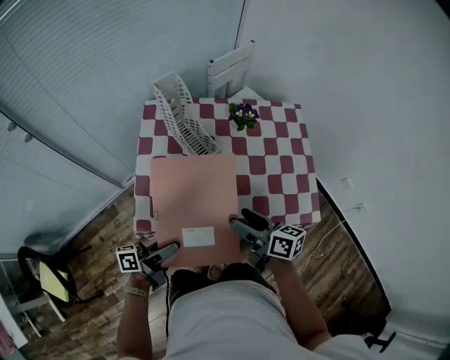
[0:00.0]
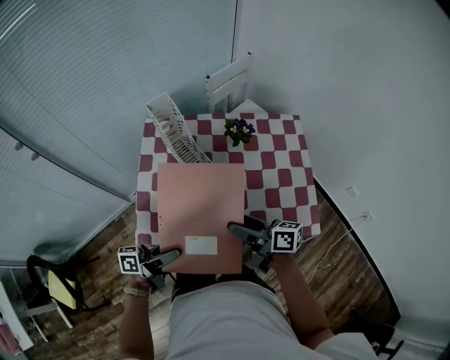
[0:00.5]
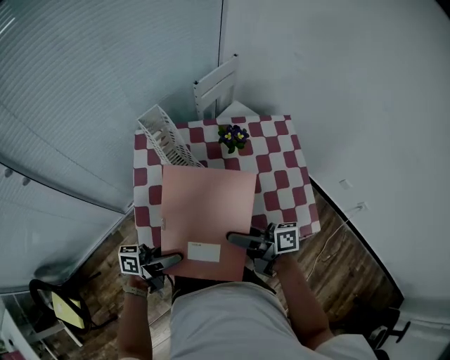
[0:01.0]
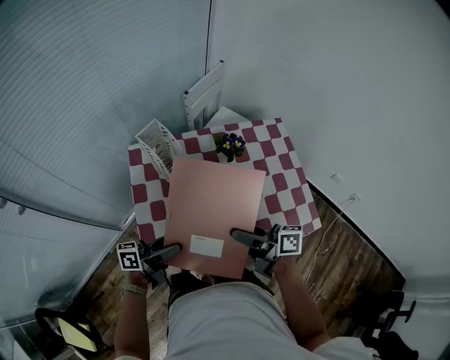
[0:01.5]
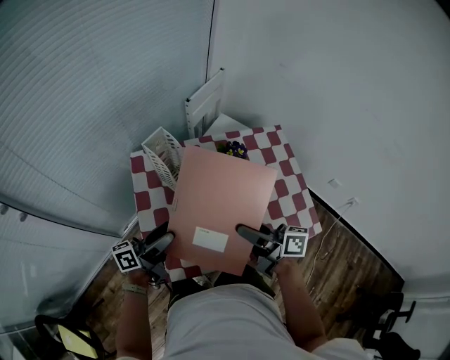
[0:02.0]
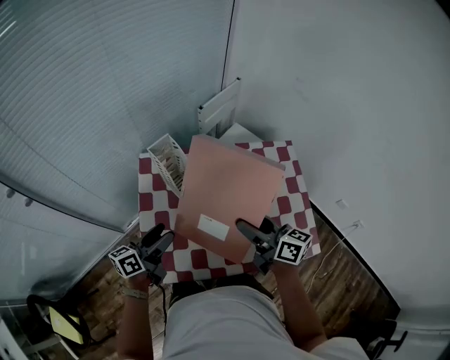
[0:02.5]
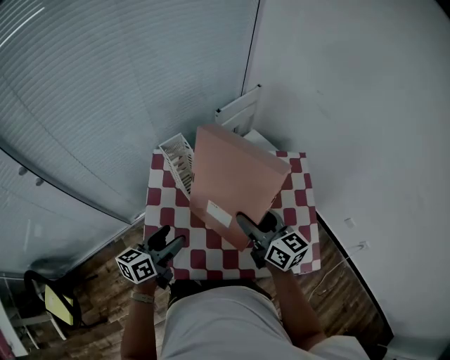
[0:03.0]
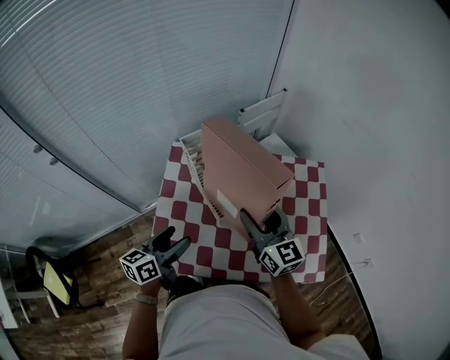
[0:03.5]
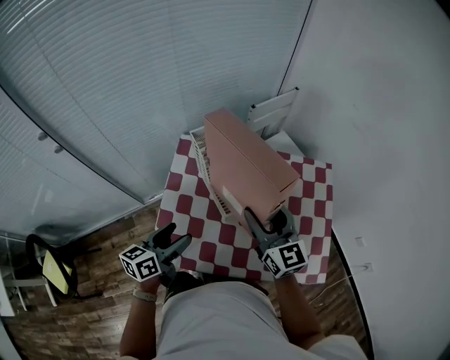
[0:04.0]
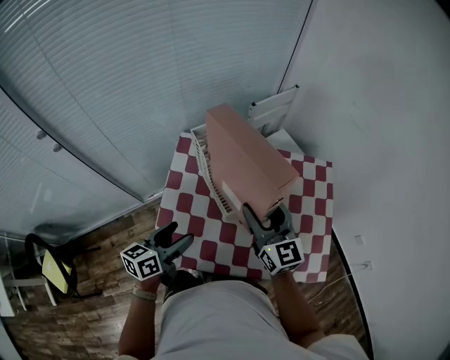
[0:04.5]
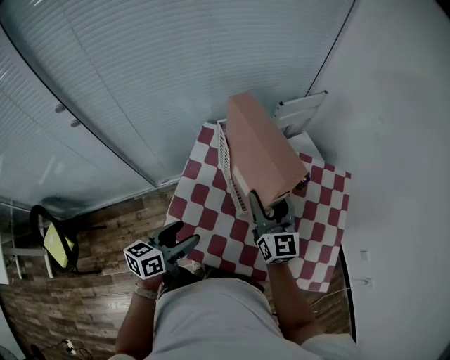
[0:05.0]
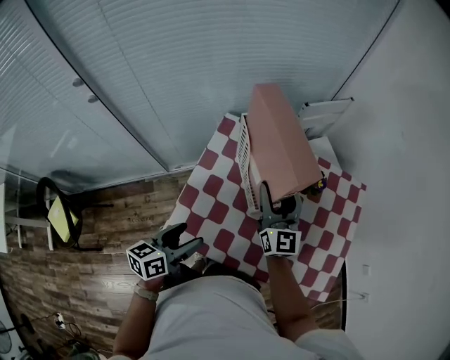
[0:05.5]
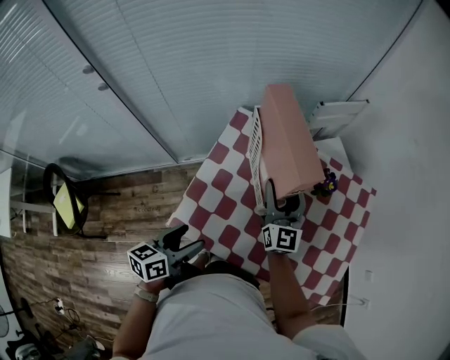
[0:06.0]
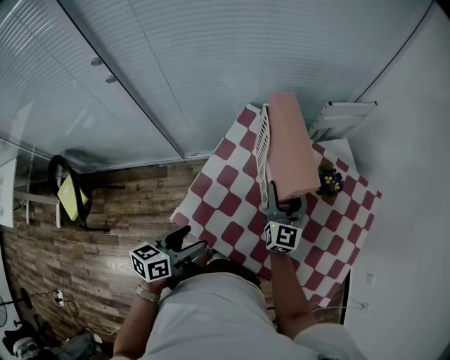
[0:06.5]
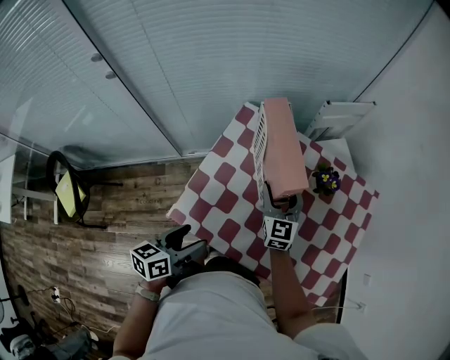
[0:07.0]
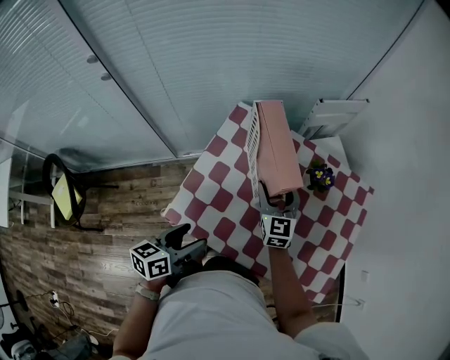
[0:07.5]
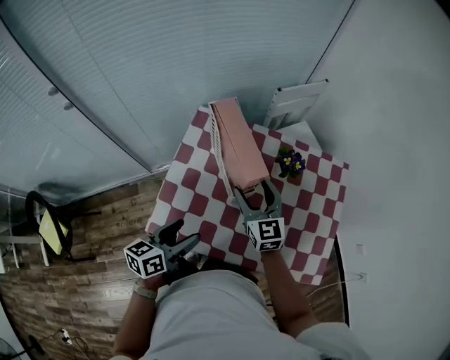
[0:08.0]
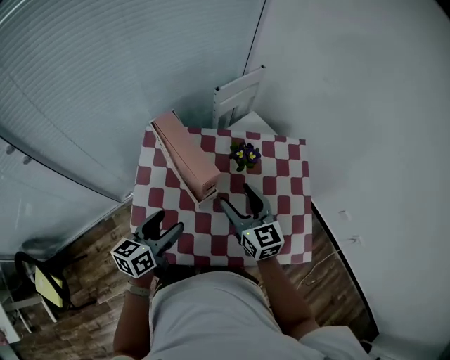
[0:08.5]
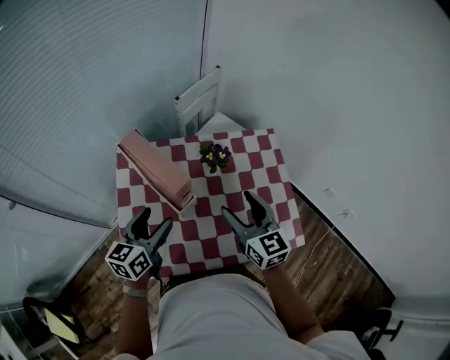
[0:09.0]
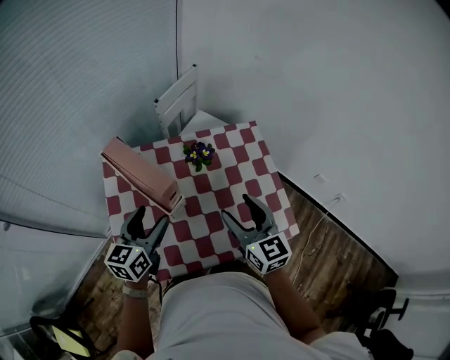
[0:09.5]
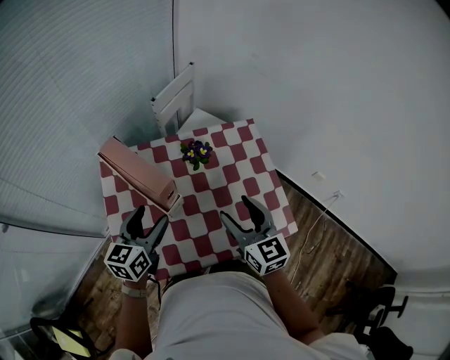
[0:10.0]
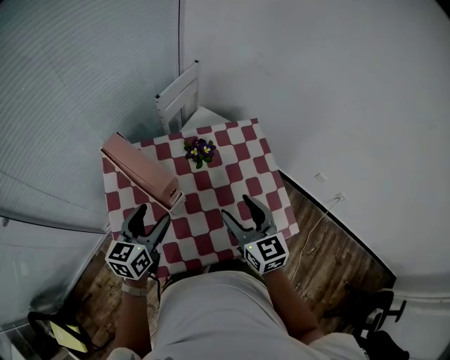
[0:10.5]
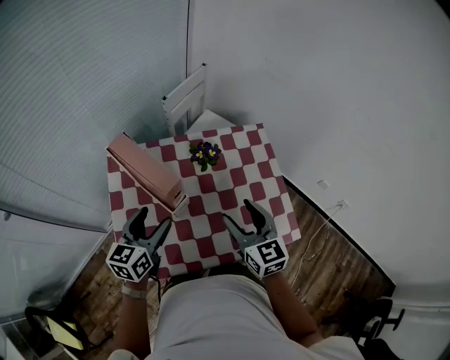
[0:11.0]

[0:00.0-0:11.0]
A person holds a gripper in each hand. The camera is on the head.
0:00.0 to 0:02.0: The left gripper shifts by approximately 25 cm; the right gripper changes place by some 15 cm.
0:02.0 to 0:03.5: The right gripper travels forward by approximately 10 cm, and rolls counterclockwise, seen from behind, by some 50 degrees. Meanwhile the left gripper rotates some 40 degrees.
0:03.5 to 0:05.5: The right gripper moves to the left and forward, about 10 cm, while the left gripper is displaced backward by some 5 cm.
0:05.5 to 0:07.5: The right gripper travels downward by some 10 cm, and rotates approximately 20 degrees. The left gripper ends up some 5 cm from where it was.
0:07.5 to 0:09.0: The left gripper travels forward by about 15 cm, and changes its angle by roughly 30 degrees; the right gripper heads to the right, upward and backward, covering some 20 cm, and turns by roughly 20 degrees.
0:09.0 to 0:11.0: The grippers make only small movements.

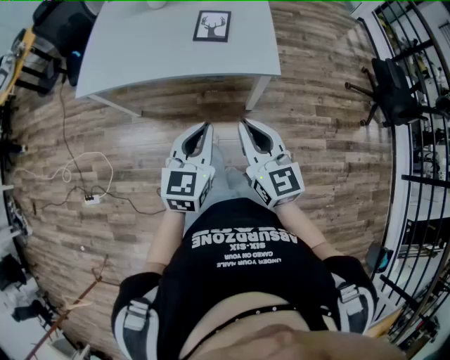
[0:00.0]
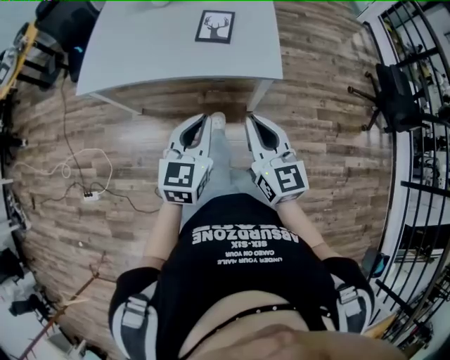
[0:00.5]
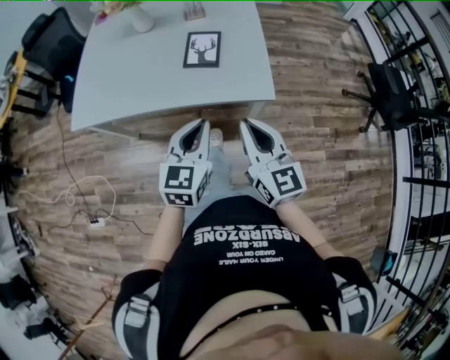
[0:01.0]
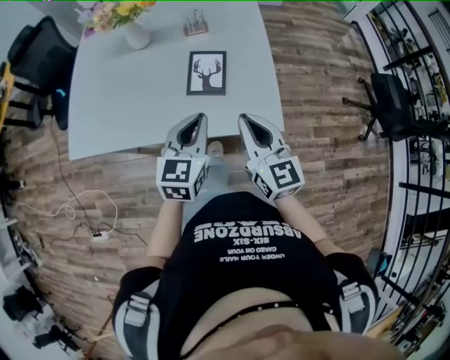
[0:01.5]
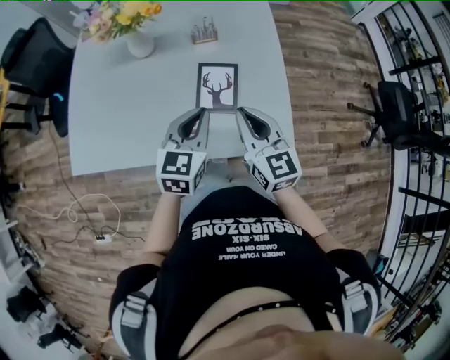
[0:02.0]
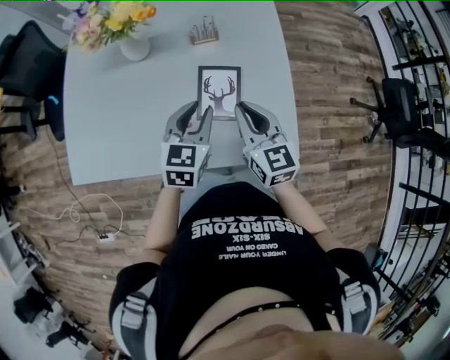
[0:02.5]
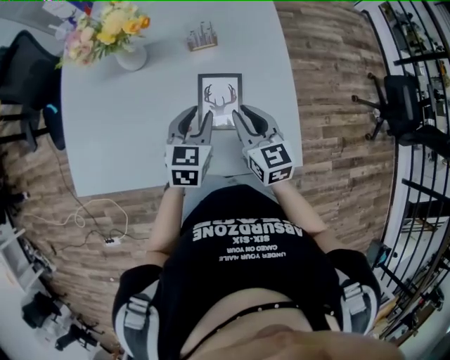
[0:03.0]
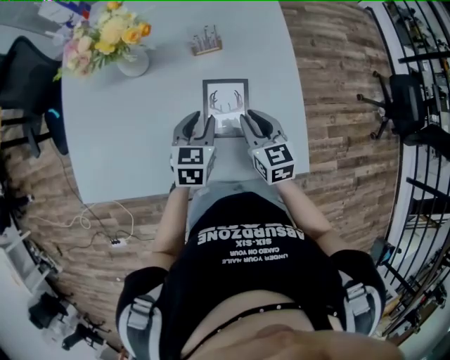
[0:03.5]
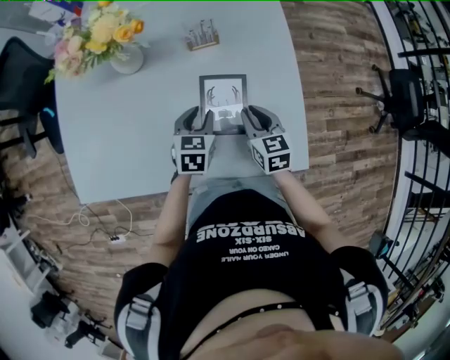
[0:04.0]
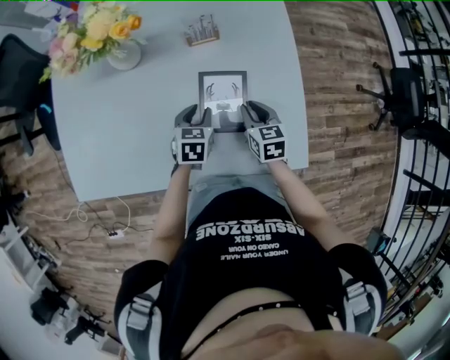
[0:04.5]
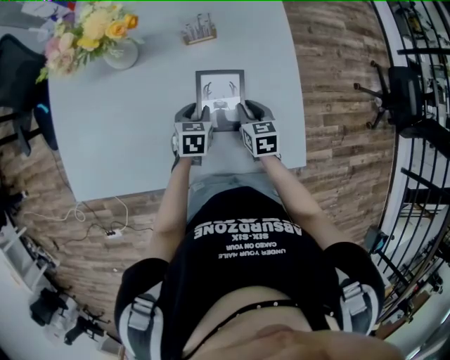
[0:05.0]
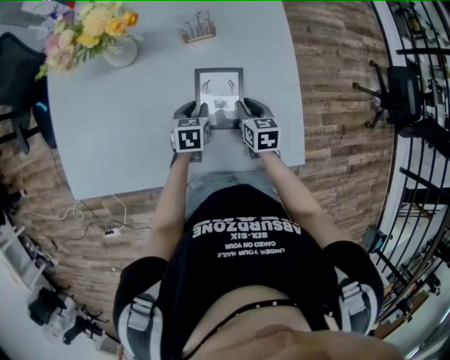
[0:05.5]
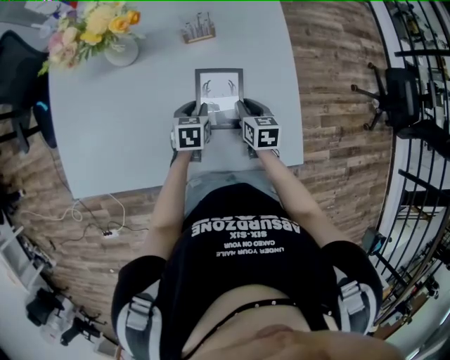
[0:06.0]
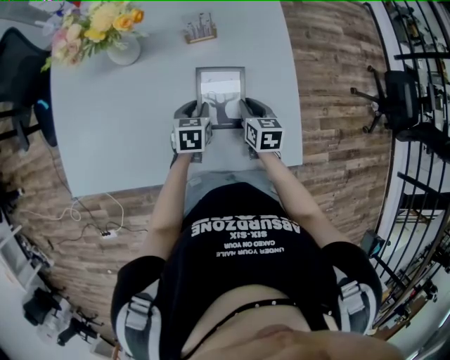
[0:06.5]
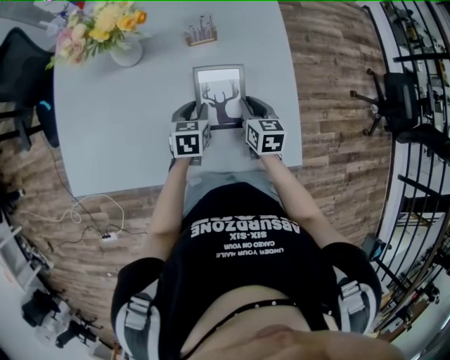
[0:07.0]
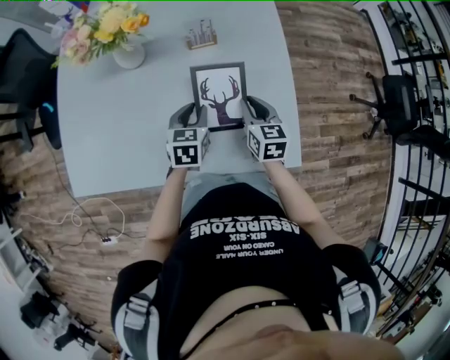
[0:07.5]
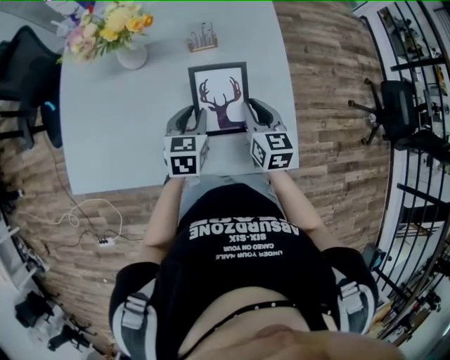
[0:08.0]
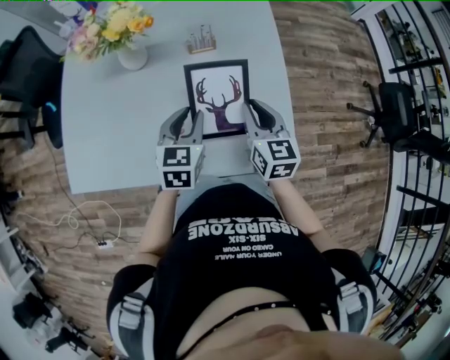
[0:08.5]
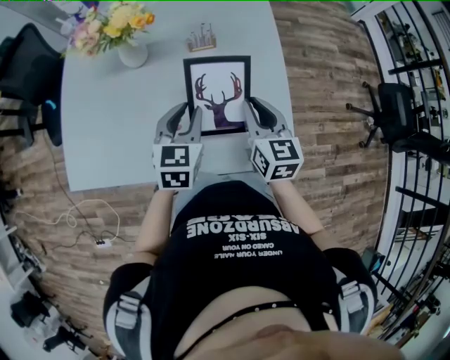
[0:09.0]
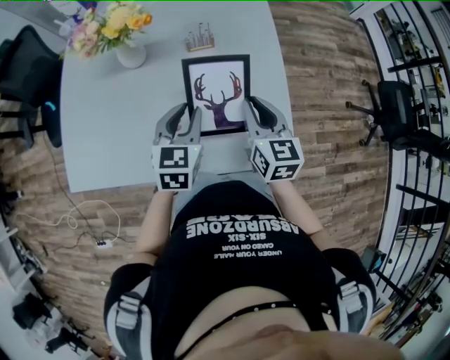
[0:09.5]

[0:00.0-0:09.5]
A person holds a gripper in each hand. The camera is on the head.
0:00.0 to 0:02.0: The grippers both shift forward by roughly 40 cm.
0:02.0 to 0:04.0: Both grippers move downward and forward, approximately 20 cm. The right gripper swivels approximately 20 degrees, while the left gripper changes its angle by about 20 degrees, and opens up.
0:04.0 to 0:05.5: Both grippers travel together downward, about 10 cm.
0:05.5 to 0:07.5: Both grippers travel together upward, roughly 10 cm.
0:07.5 to 0:09.5: Both grippers move upward, approximately 10 cm.

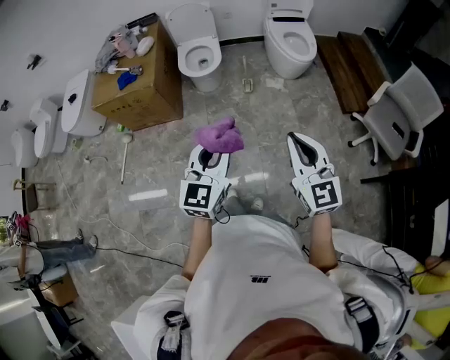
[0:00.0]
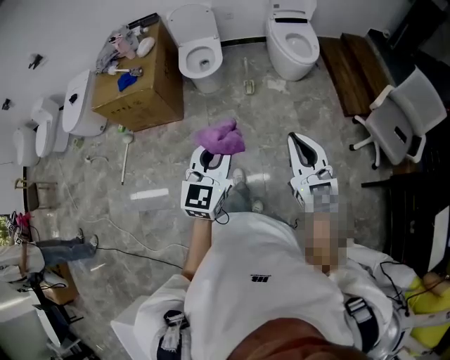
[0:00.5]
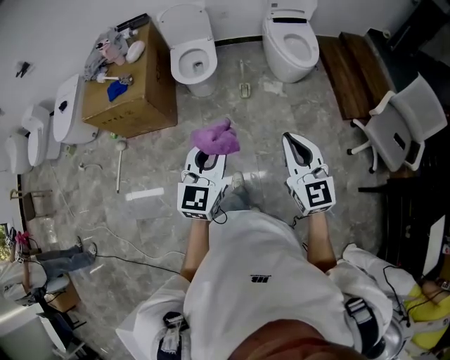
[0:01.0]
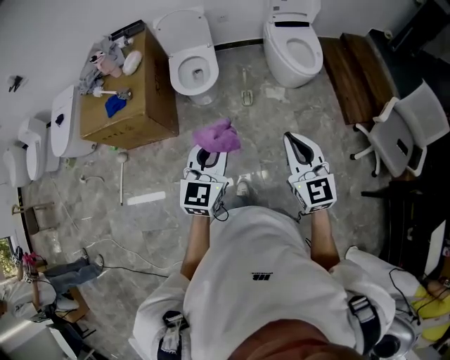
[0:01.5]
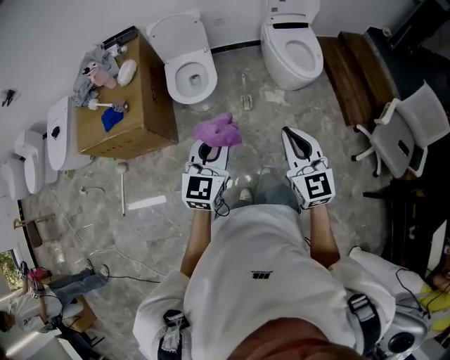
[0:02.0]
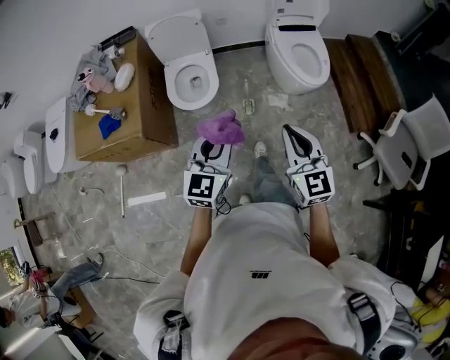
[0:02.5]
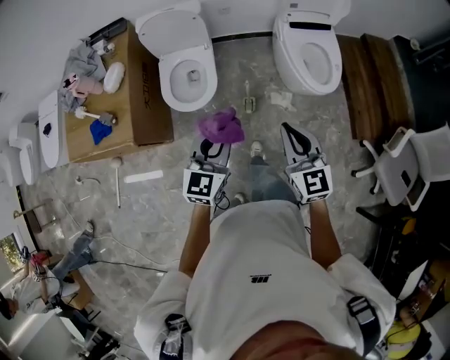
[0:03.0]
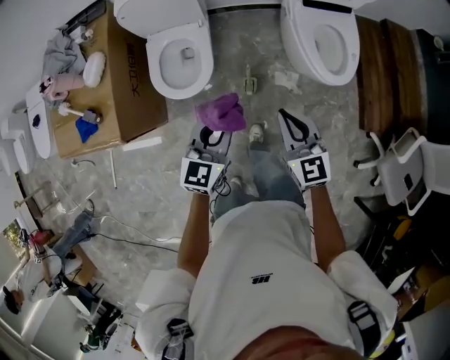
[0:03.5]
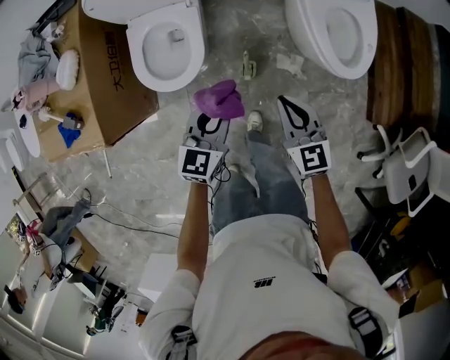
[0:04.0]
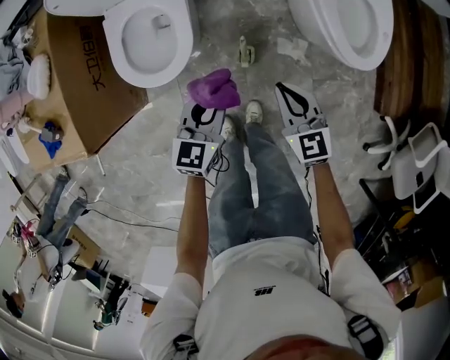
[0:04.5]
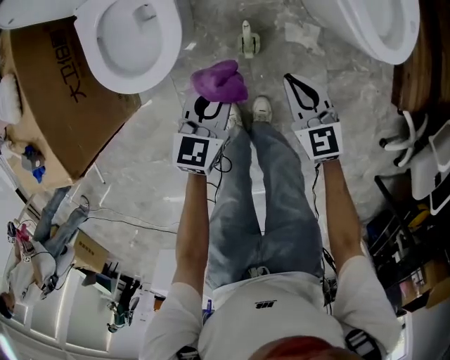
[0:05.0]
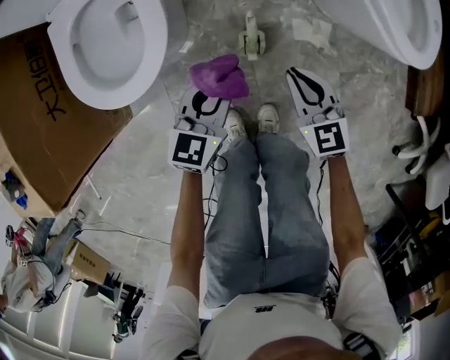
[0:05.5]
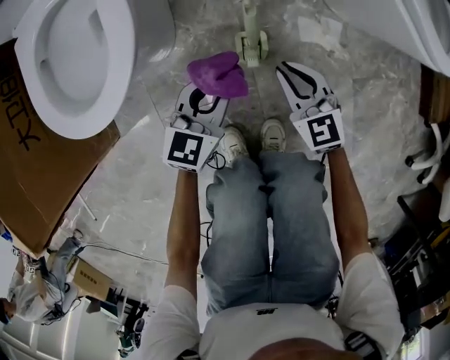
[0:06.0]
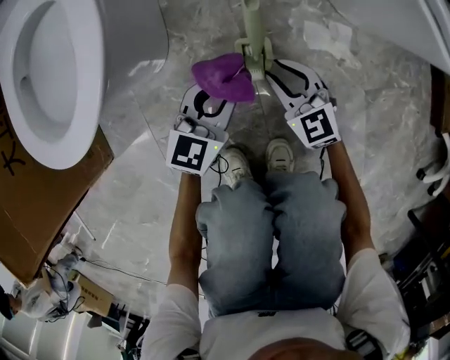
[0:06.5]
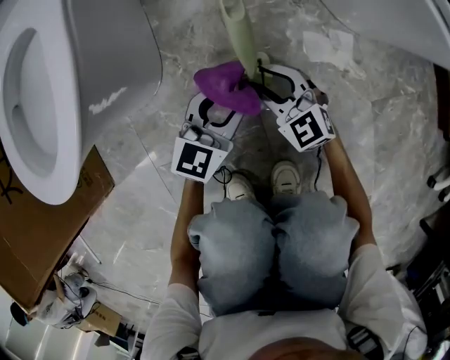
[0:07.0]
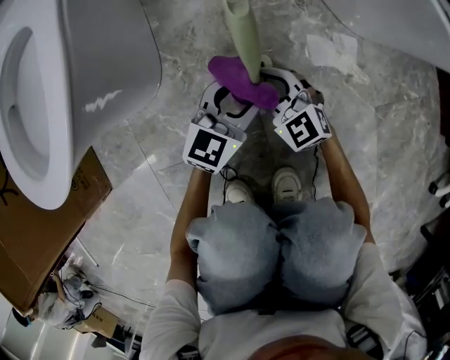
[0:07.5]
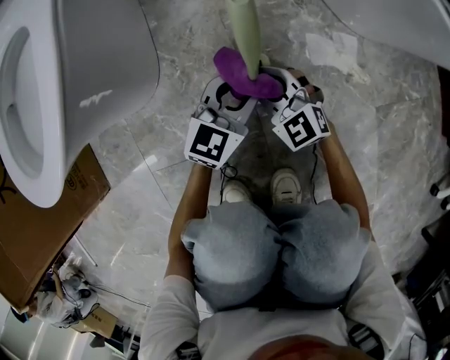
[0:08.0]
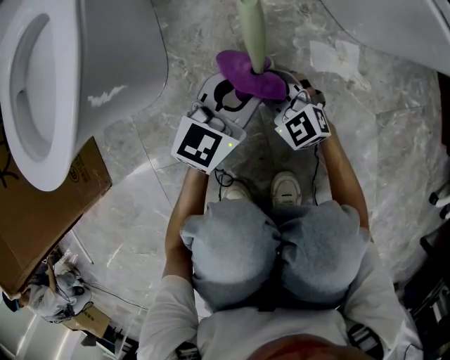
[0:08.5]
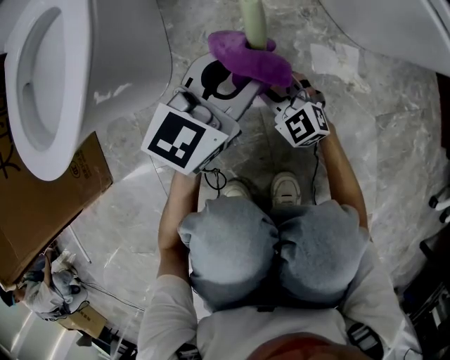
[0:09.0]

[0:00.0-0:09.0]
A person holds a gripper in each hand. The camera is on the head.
0:00.0 to 0:02.0: Both grippers travel together forward, about 35 cm.
0:02.0 to 0:04.5: The two grippers travel together, forward, approximately 50 cm. Both grippers travel together downward, about 40 cm. The left gripper changes its angle by about 20 degrees, while the right gripper turns by about 30 degrees.
0:04.5 to 0:07.0: Both grippers move downward, about 50 cm. The left gripper changes its angle by about 30 degrees, and opens its fingers. Meanwhile the right gripper swivels about 20 degrees, and opens.
0:07.0 to 0:09.0: The left gripper goes roughly 10 cm upward.
